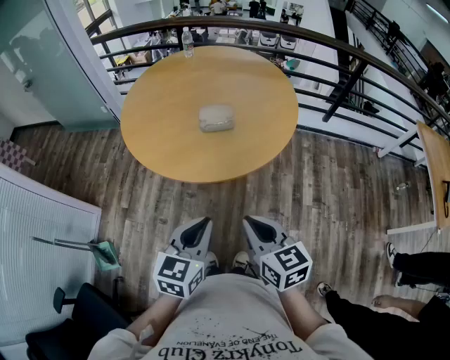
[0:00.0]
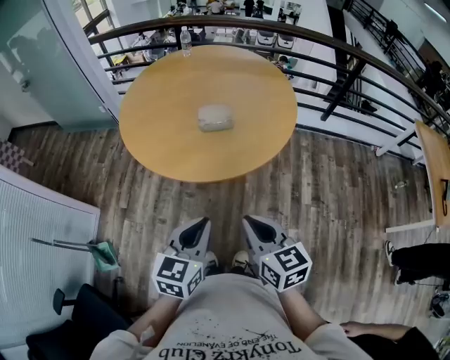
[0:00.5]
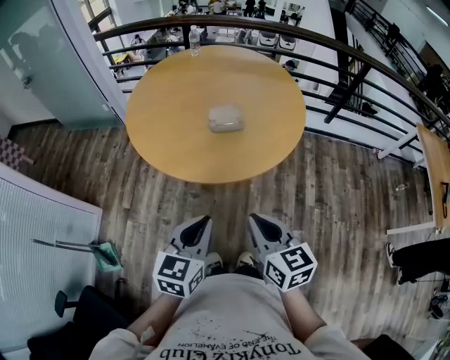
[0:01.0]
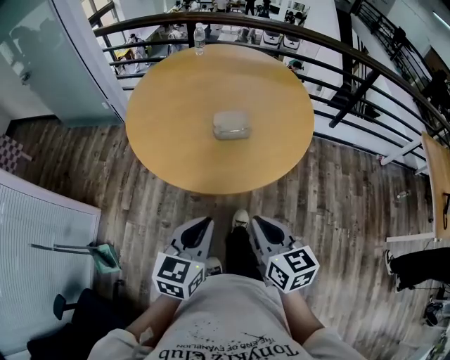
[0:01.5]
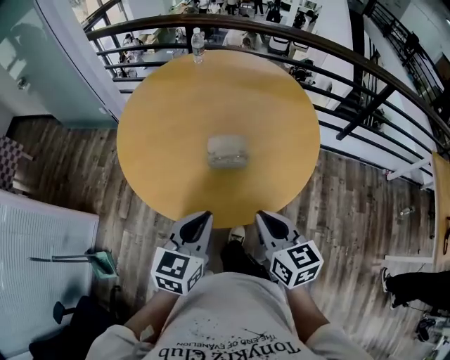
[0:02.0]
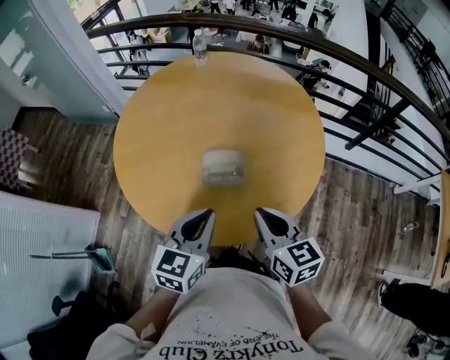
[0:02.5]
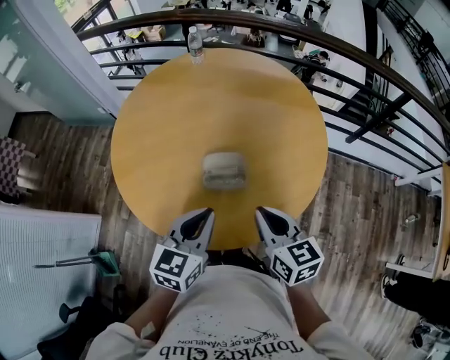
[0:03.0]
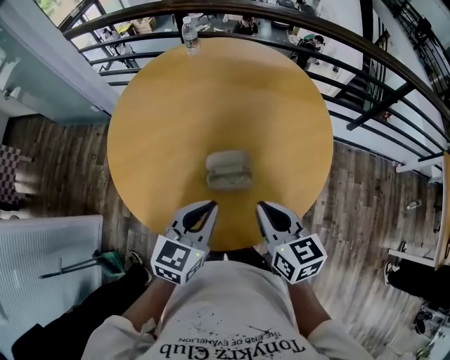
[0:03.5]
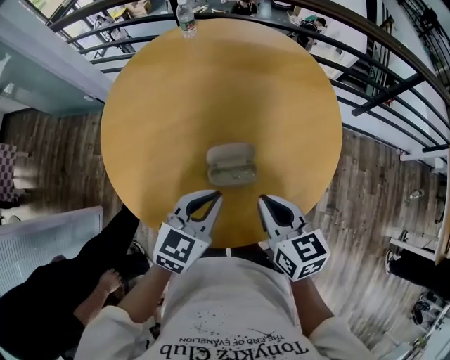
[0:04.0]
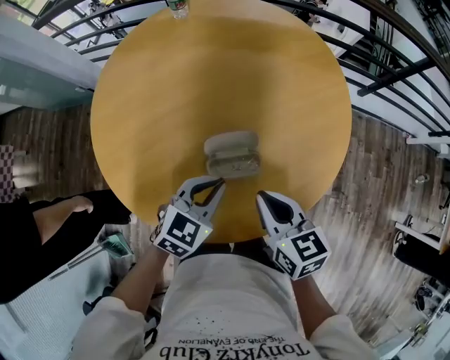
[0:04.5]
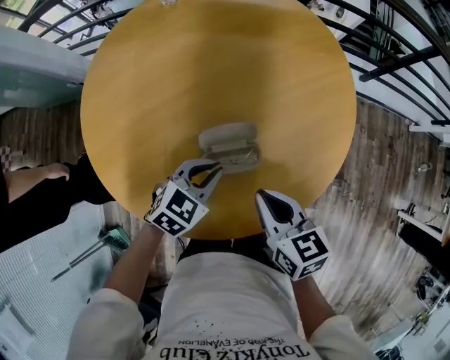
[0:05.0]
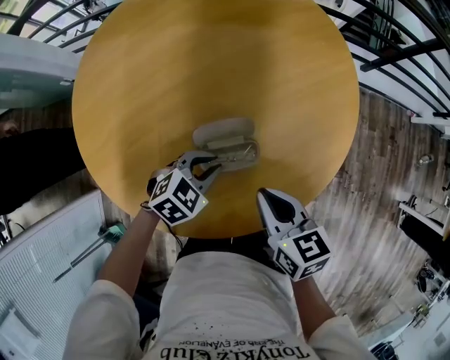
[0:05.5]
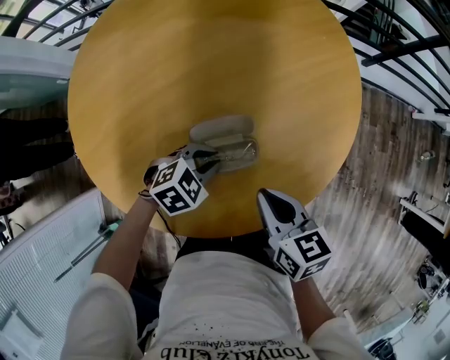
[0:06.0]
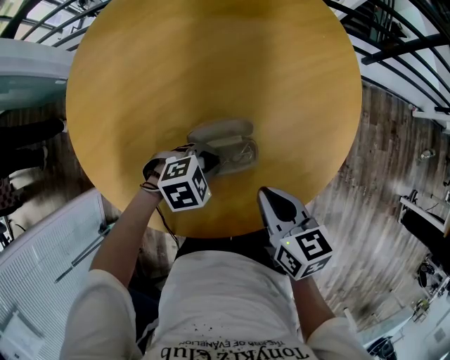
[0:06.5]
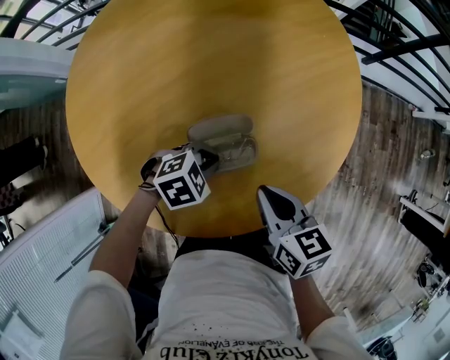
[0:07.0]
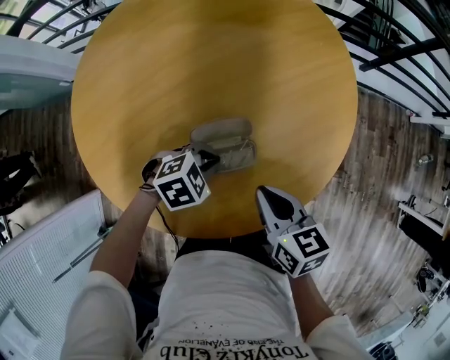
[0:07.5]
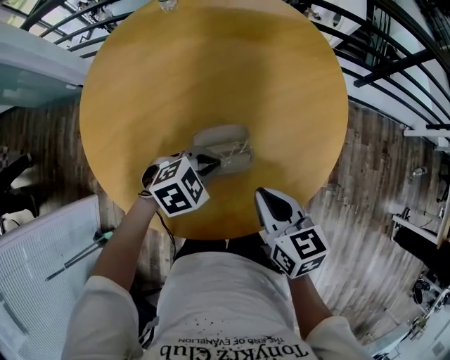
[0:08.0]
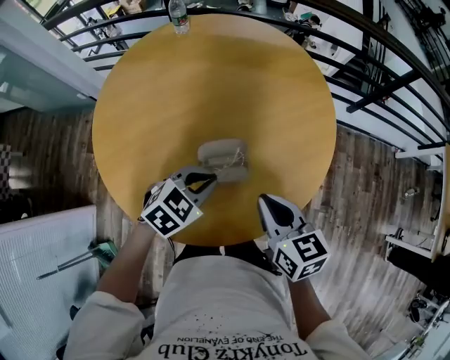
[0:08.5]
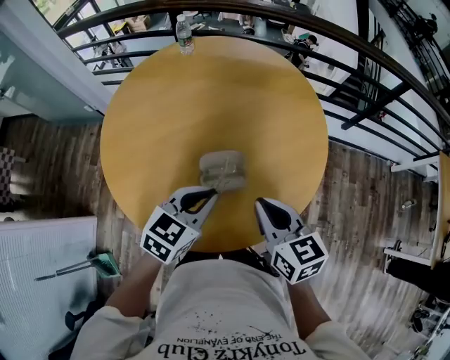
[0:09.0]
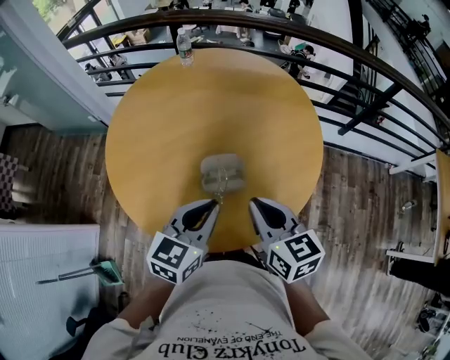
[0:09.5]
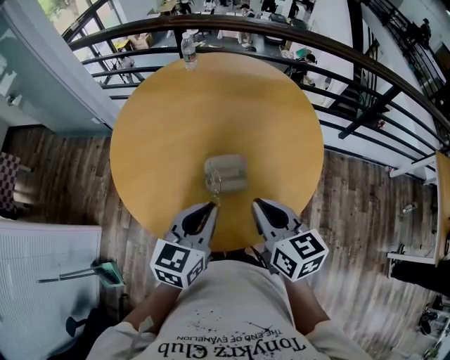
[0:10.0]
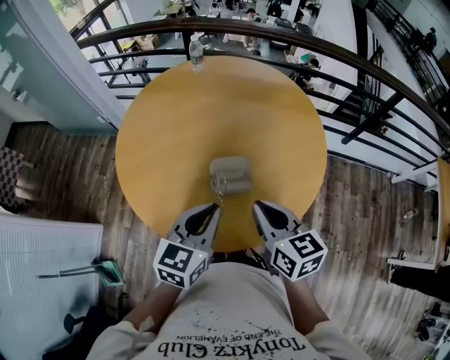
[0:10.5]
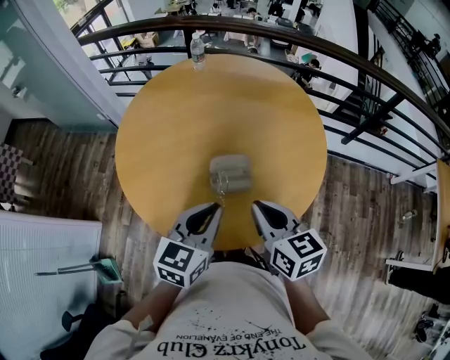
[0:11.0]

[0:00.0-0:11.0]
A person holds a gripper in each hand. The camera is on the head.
0:00.0 to 0:02.0: Both grippers travel together forward, about 20 cm.
0:02.0 to 0:03.5: Both grippers move forward, some 15 cm.
0:03.5 to 0:05.5: The right gripper goes roughly 15 cm downward and forward; the left gripper travels downward and forward by approximately 25 cm, and changes its angle by some 50 degrees.
0:07.5 to 0:09.0: The left gripper goes about 20 cm upward, and turns by about 50 degrees. Meanwhile the right gripper travels upward by some 15 cm.
0:09.0 to 0:11.0: The left gripper travels backward and upward by approximately 10 cm, and rotates about 20 degrees; the right gripper shifts by about 5 cm.

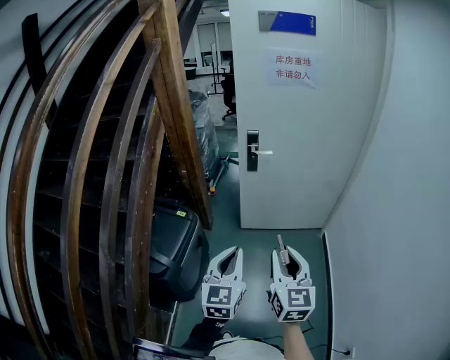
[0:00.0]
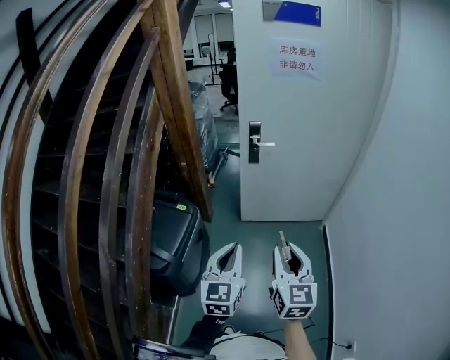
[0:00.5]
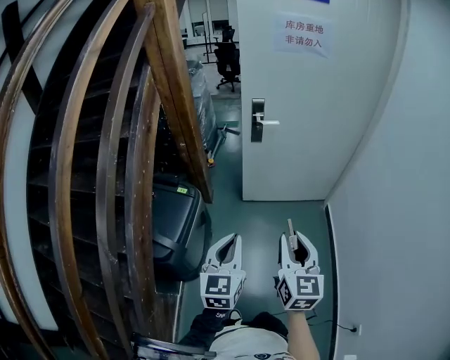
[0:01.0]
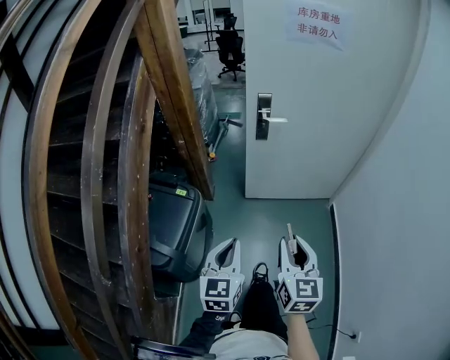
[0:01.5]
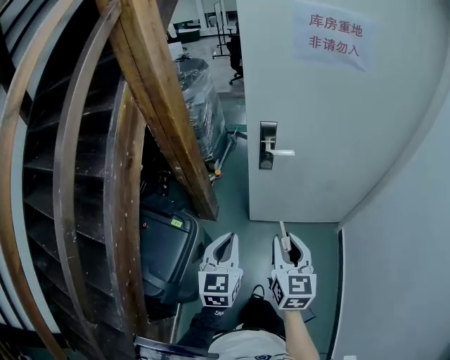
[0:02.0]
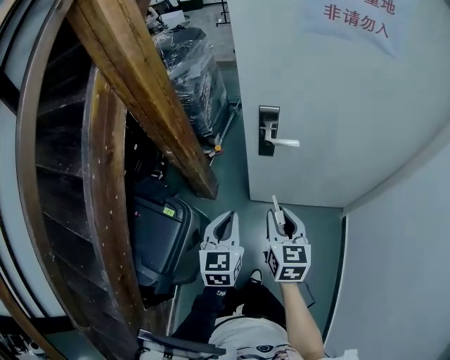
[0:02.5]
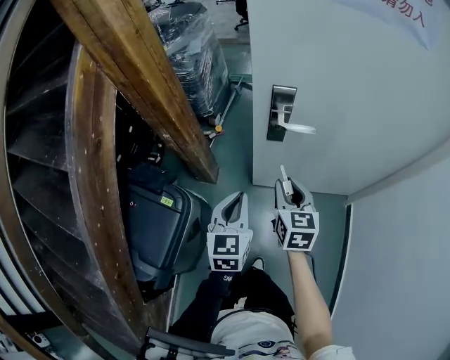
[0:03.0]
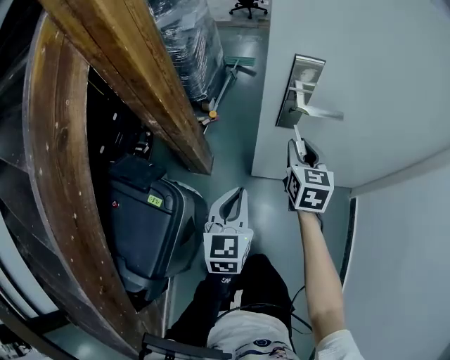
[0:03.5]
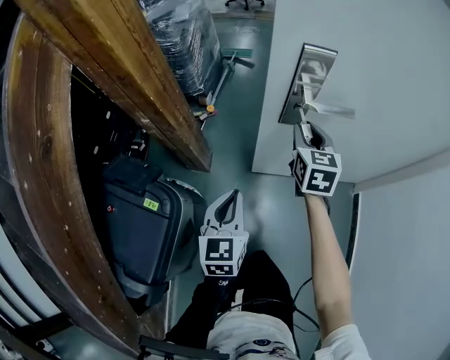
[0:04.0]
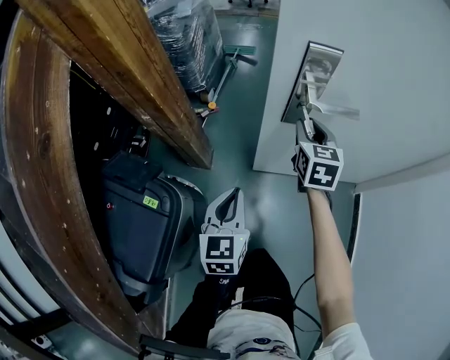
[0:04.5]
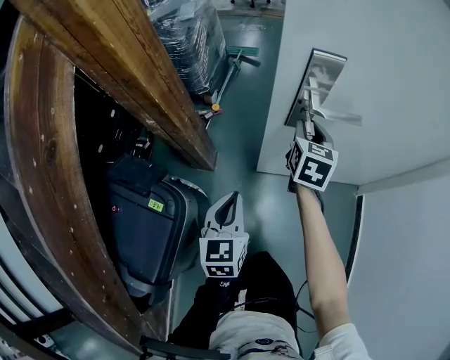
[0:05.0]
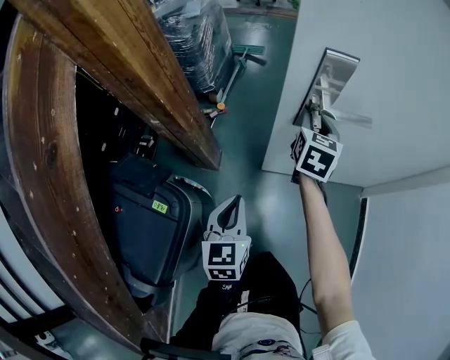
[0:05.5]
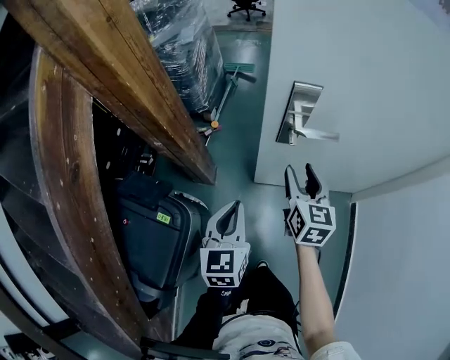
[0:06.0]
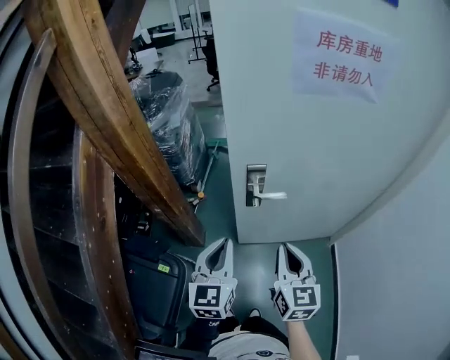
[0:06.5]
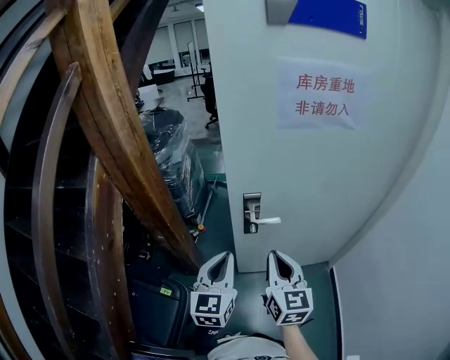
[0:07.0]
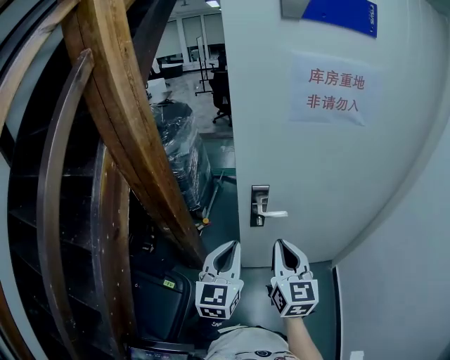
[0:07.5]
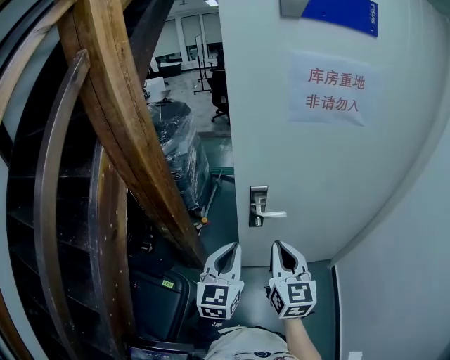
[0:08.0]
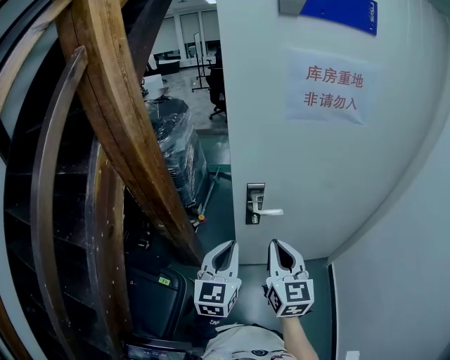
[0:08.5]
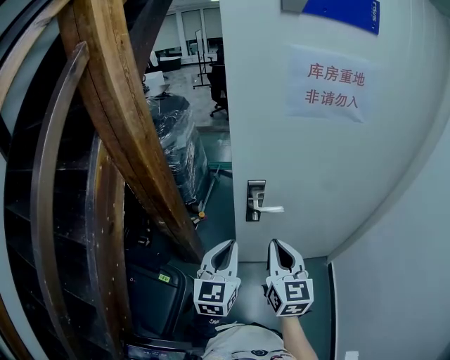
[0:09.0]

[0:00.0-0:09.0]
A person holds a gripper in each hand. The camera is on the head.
0:00.0 to 0:02.0: The two grippers go about 30 cm forward.
0:02.0 to 0:04.5: The right gripper goes about 50 cm forward and downward, while the left gripper is displaced downward and forward by about 30 cm.
0:04.5 to 0:07.0: The right gripper heads upward and backward, covering about 40 cm, changes its angle by roughly 20 degrees, and closes its fingers. The left gripper goes about 35 cm upward, and rotates roughly 20 degrees.
0:07.0 to 0:09.0: The grippers stay close to where they were, moving slightly.

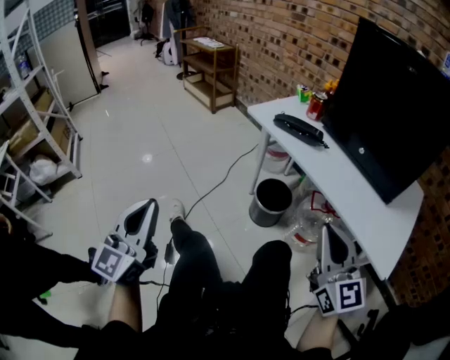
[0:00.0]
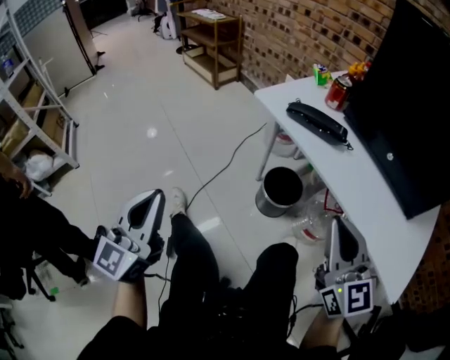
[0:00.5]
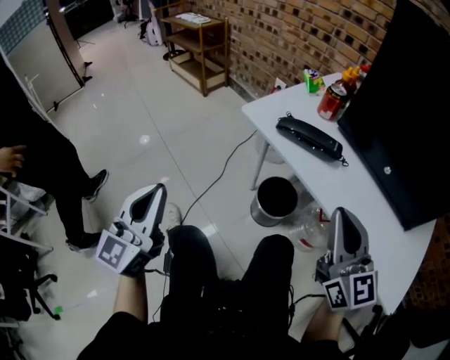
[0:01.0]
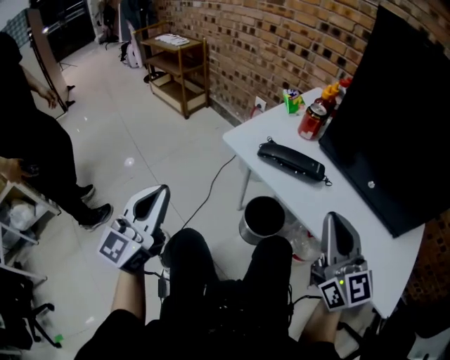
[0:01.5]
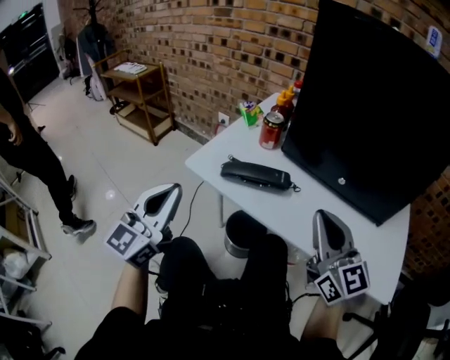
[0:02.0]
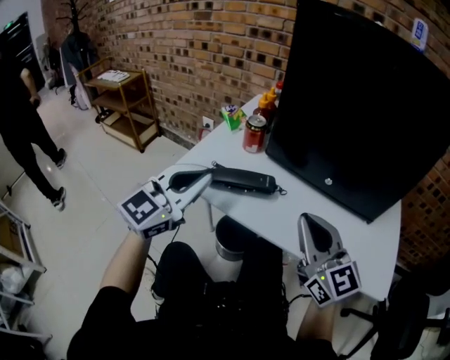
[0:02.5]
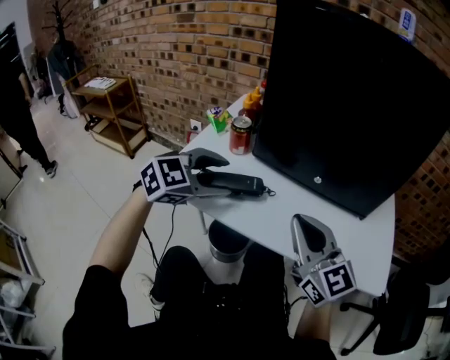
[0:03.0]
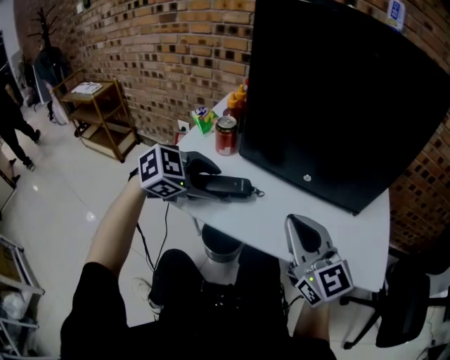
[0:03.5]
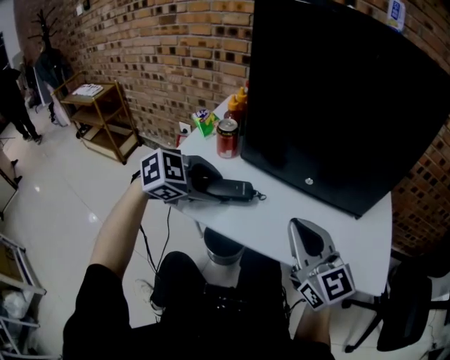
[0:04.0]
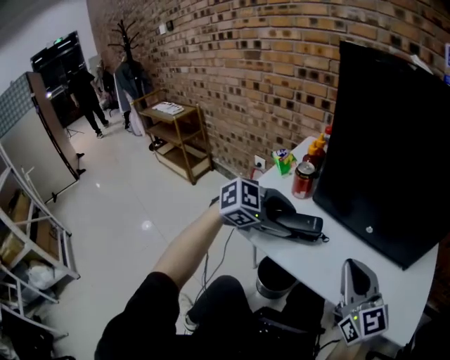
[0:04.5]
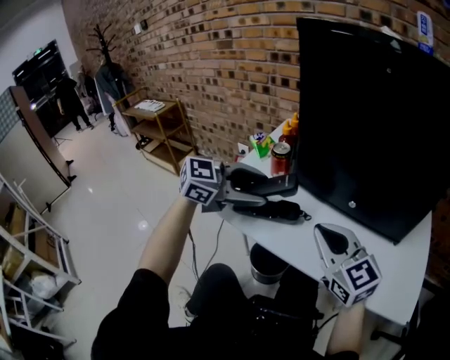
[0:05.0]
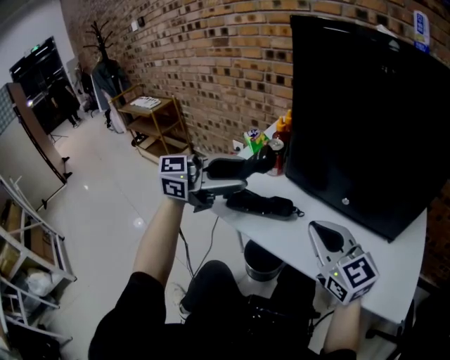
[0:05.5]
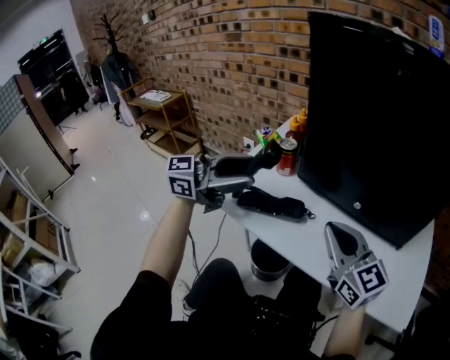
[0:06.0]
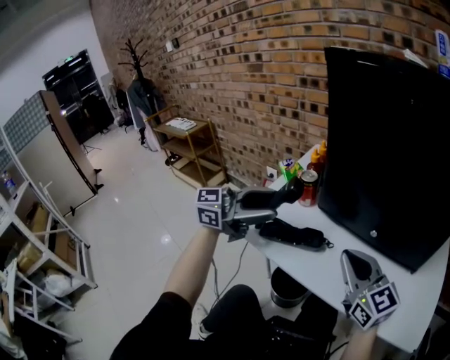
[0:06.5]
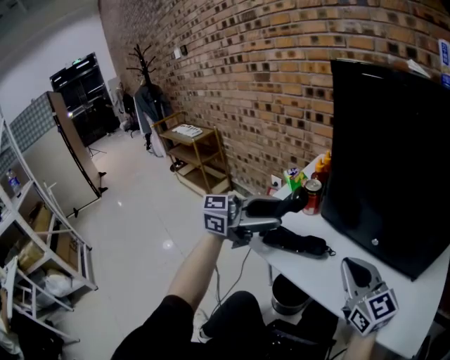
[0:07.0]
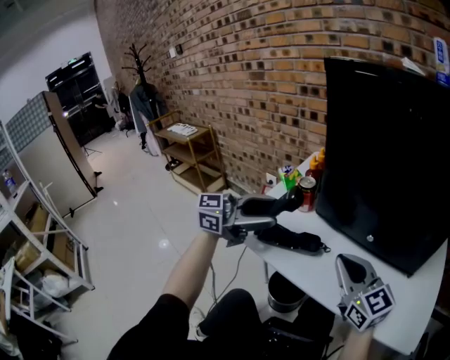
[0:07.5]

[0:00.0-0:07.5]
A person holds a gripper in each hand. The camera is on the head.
0:00.0 to 0:02.0: The left gripper goes approximately 35 cm forward, and rotates roughly 30 degrees. Meanwhile the right gripper is displaced forward by approximately 25 cm.
0:02.0 to 0:04.0: The left gripper shifts by approximately 25 cm, tilts its fingers about 50 degrees downward, and opens.
0:04.0 to 0:05.5: The left gripper travels upward by some 15 cm, and angles its fingers upward, by some 40 degrees.
0:05.5 to 0:07.5: The grippers move only a little.
